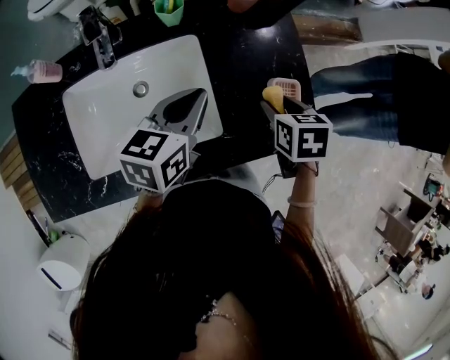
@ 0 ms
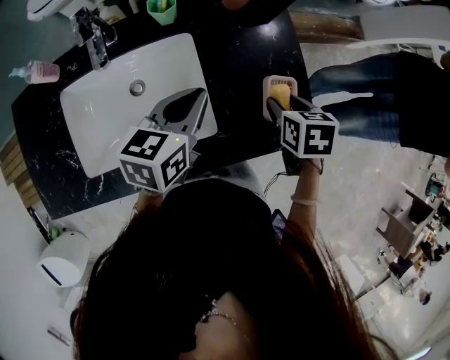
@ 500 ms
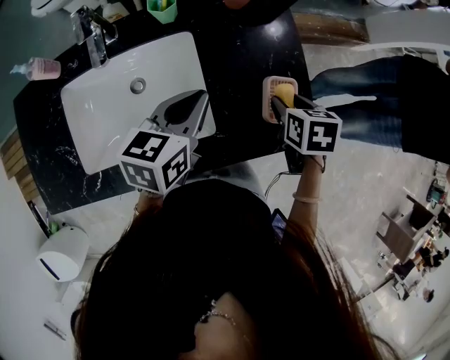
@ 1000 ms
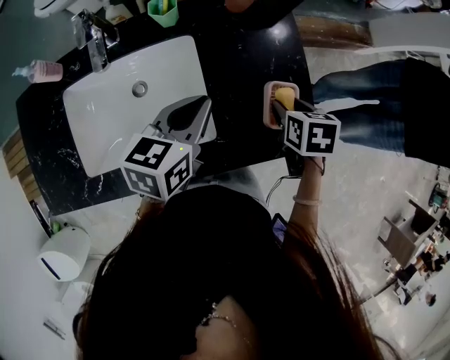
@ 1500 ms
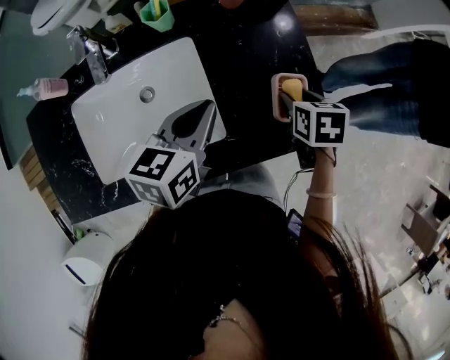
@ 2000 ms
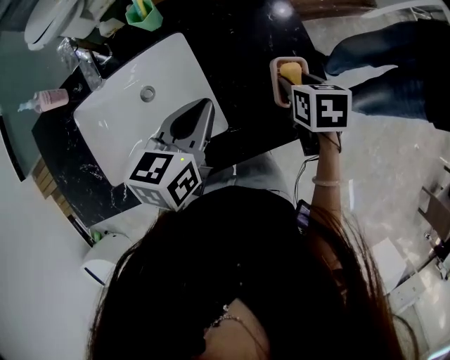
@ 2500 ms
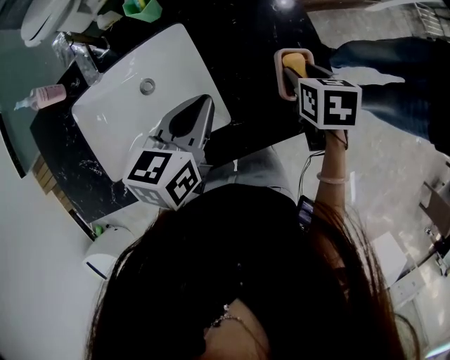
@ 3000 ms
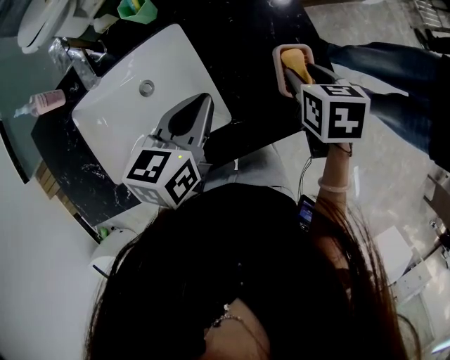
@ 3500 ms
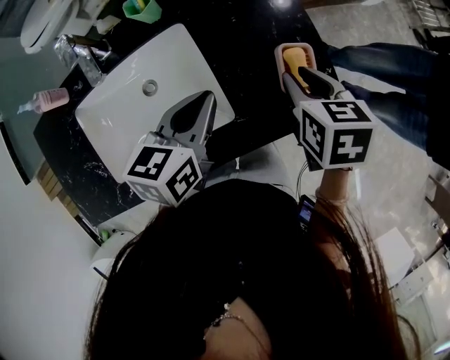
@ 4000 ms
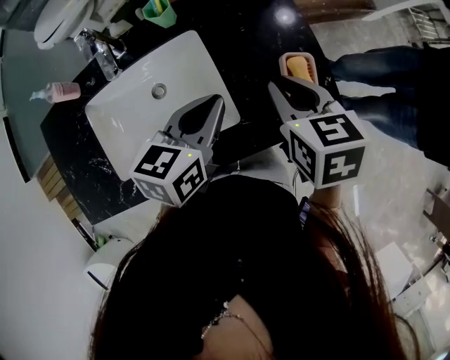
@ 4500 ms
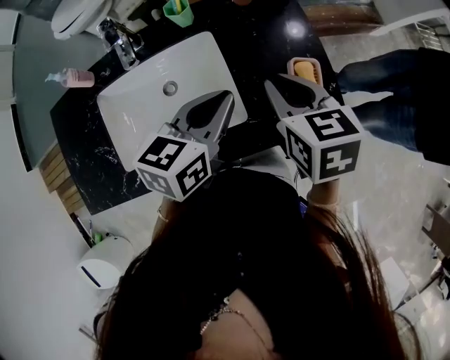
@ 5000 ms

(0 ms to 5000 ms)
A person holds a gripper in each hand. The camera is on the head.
0 ms - 2500 ms: The right gripper shifts about 5 cm to the right.
2500 ms - 5000 ms: The right gripper travels upward and to the left by some 20 cm, rotates approximately 30 degrees, and closes up, while the left gripper goes some 5 cm upward.

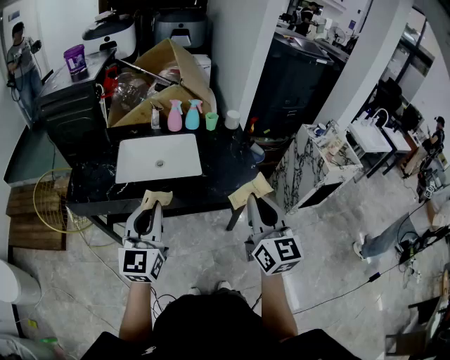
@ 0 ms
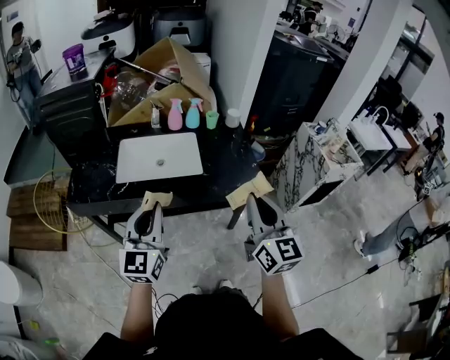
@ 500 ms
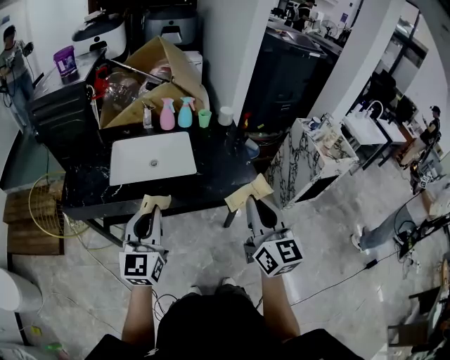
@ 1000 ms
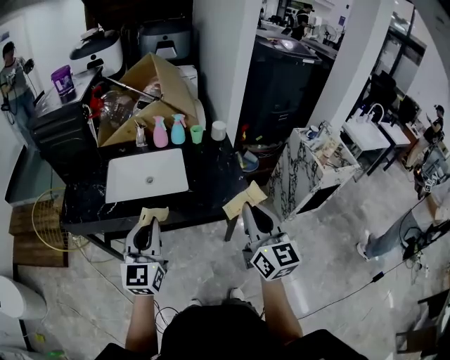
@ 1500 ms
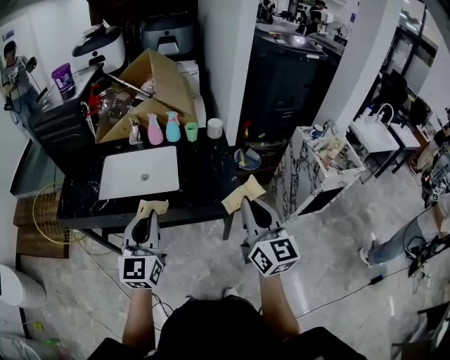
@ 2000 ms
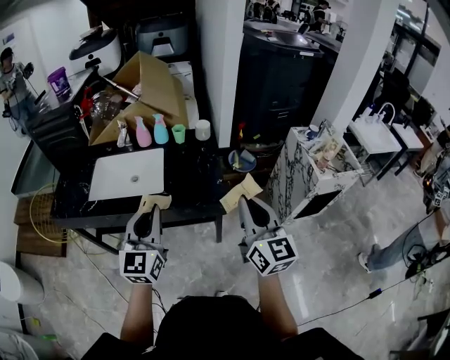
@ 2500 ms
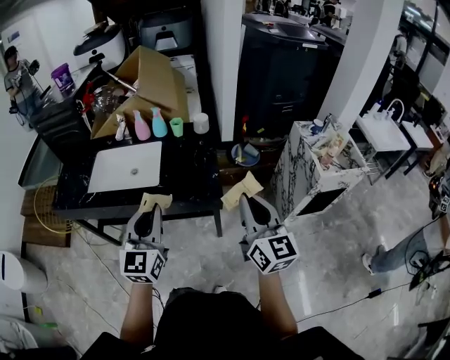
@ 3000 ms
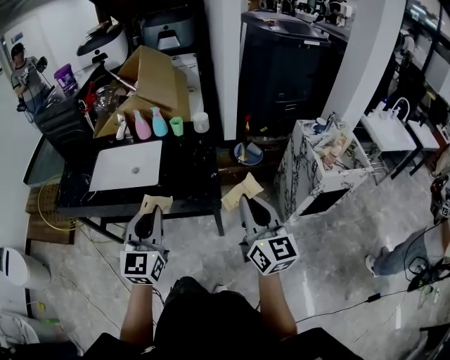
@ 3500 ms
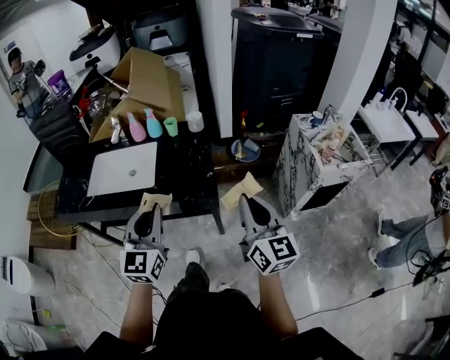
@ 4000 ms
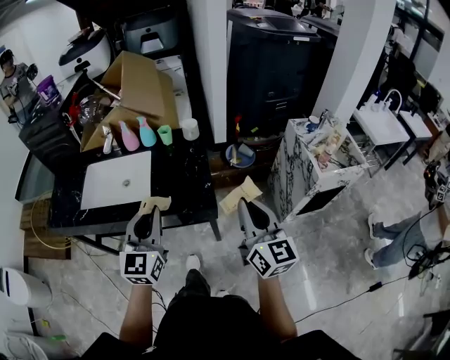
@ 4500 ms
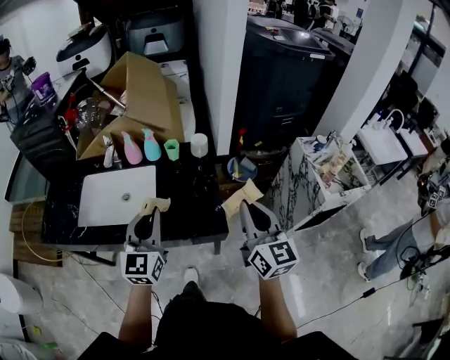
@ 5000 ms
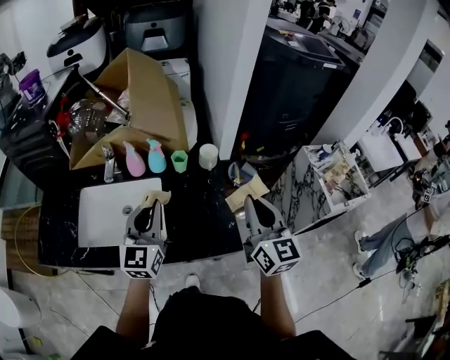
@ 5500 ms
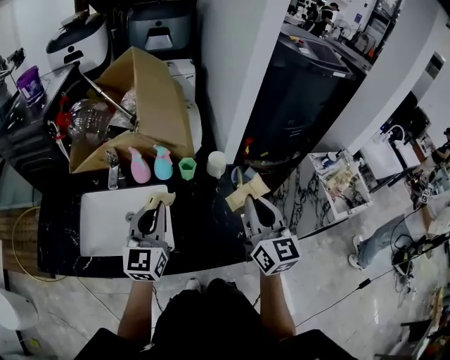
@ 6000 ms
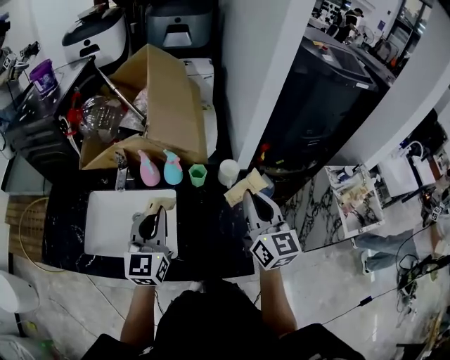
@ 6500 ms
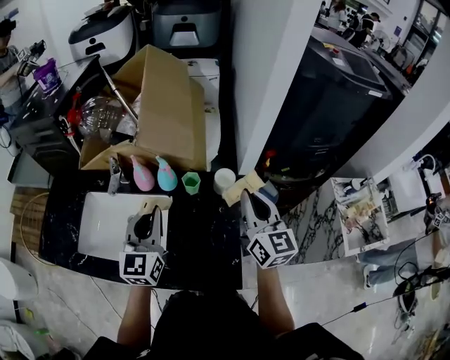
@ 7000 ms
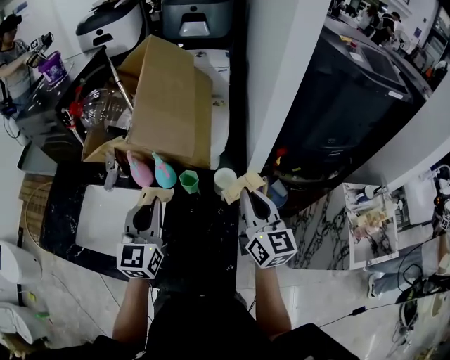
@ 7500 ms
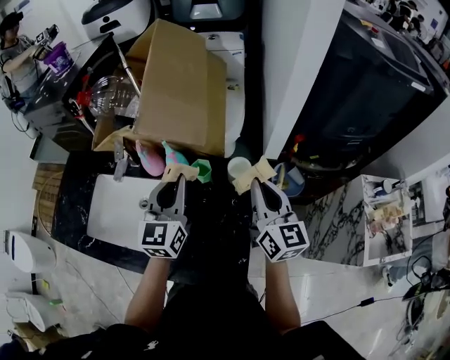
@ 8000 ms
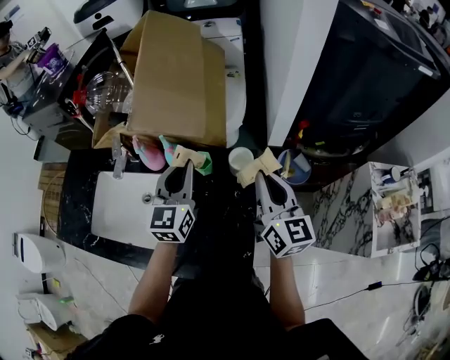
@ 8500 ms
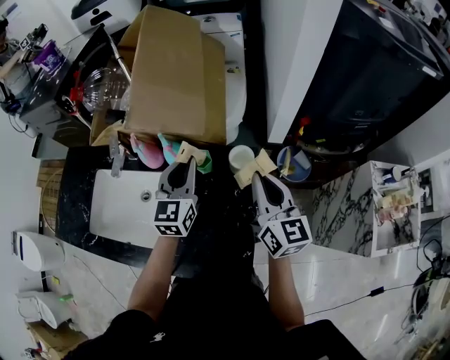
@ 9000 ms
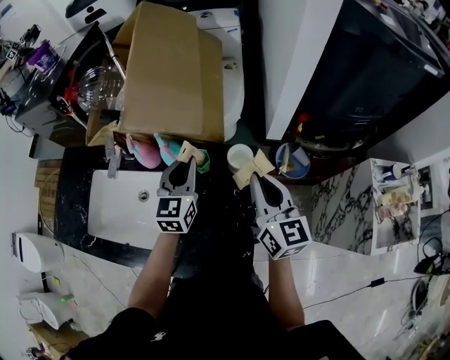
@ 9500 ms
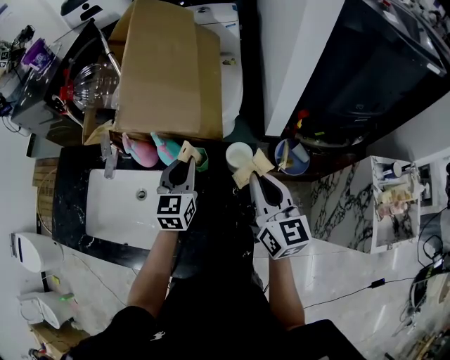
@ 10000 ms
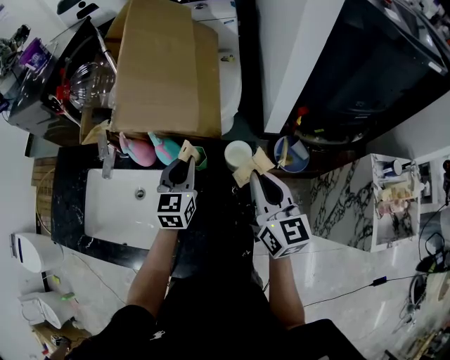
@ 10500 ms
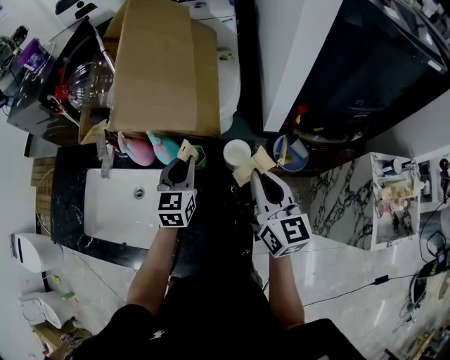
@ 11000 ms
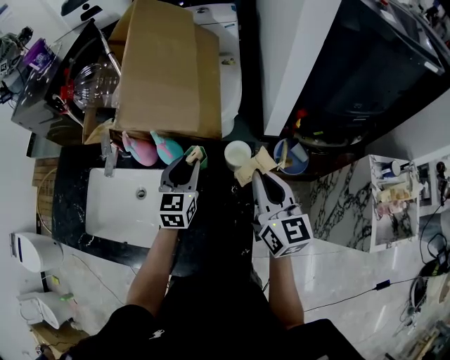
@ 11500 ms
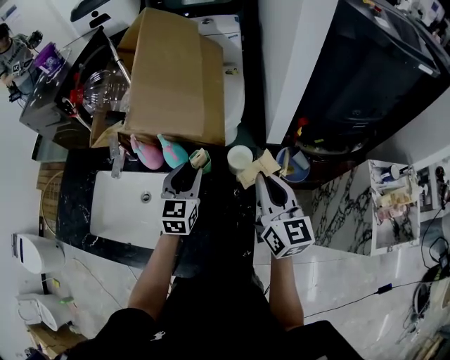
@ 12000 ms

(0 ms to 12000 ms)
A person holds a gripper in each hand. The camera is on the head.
0 ms - 2000 ms: The left gripper is displaced to the right by some 15 cm. Meanwhile the right gripper is displaced to the right and forward by some 15 cm.
2000 ms - 4000 ms: Both grippers move to the right, roughly 15 cm.
4000 ms - 6000 ms: The two grippers go about 35 cm forward and to the left.
6000 ms - 8000 ms: The left gripper shifts about 15 cm forward and to the right. The right gripper heads forward and downward, covering about 20 cm.
8000 ms - 10000 ms: The left gripper goes some 15 cm downward and forward.
10000 ms - 12000 ms: The left gripper opens its fingers.

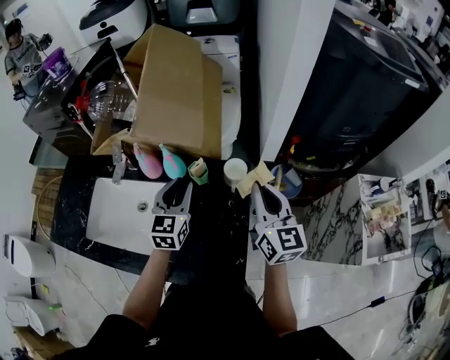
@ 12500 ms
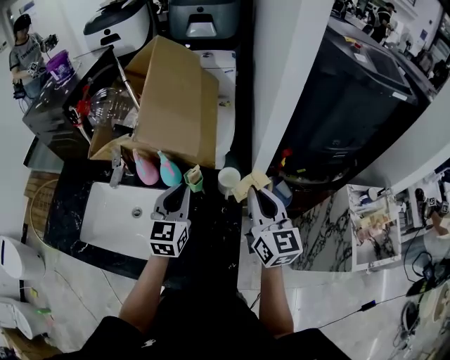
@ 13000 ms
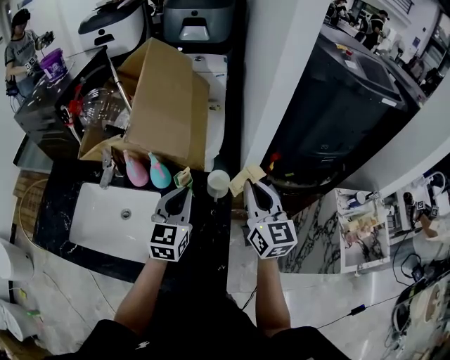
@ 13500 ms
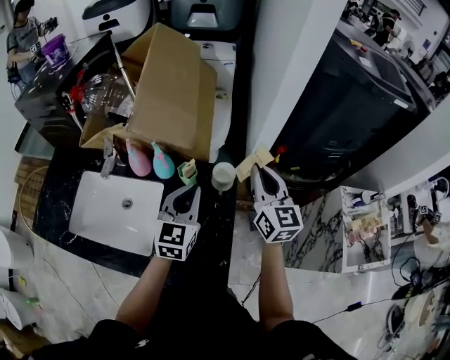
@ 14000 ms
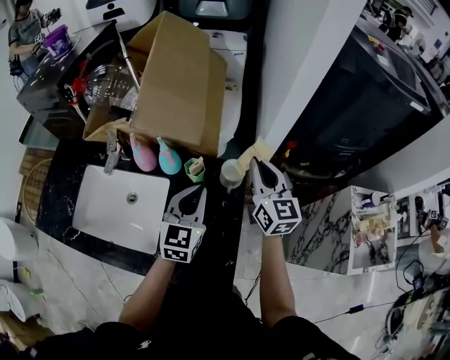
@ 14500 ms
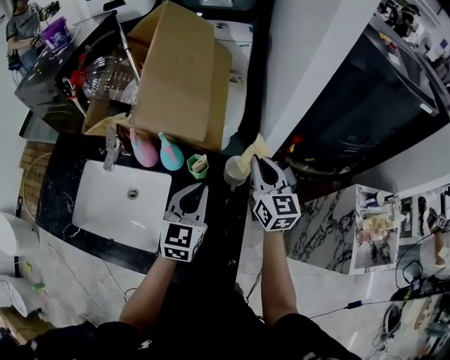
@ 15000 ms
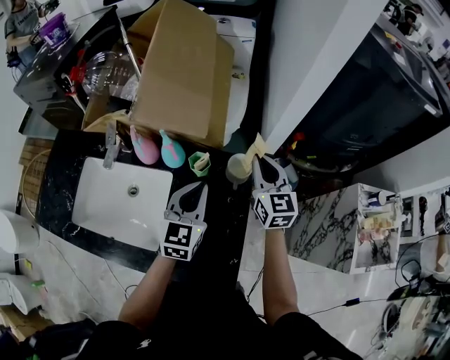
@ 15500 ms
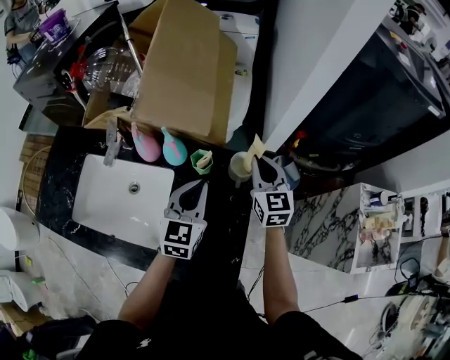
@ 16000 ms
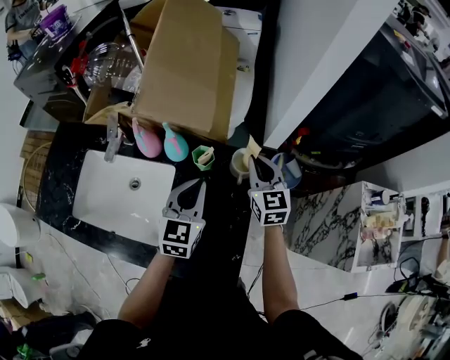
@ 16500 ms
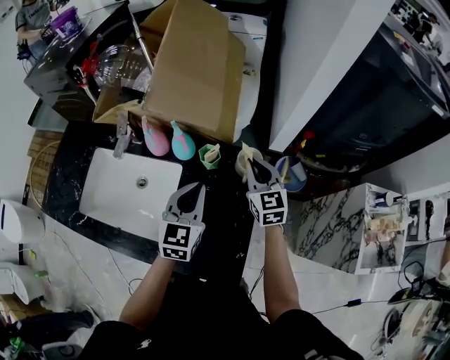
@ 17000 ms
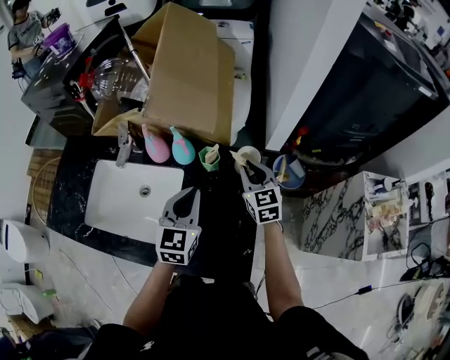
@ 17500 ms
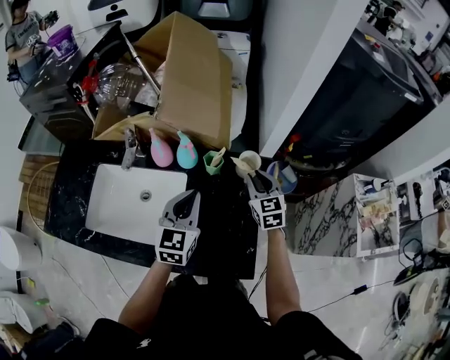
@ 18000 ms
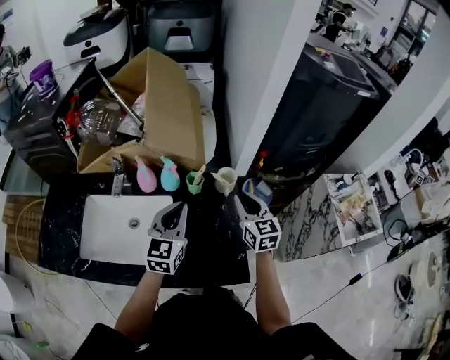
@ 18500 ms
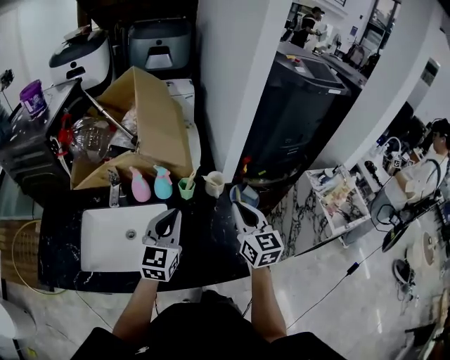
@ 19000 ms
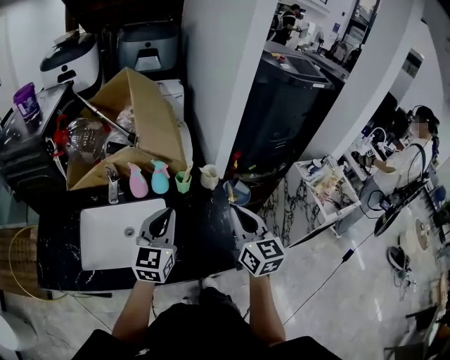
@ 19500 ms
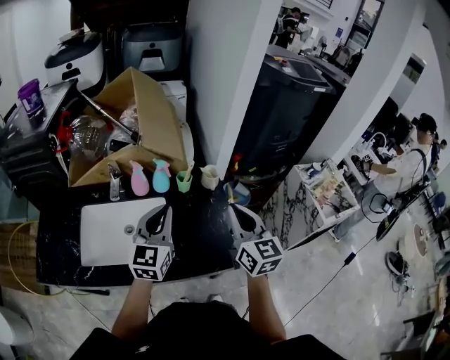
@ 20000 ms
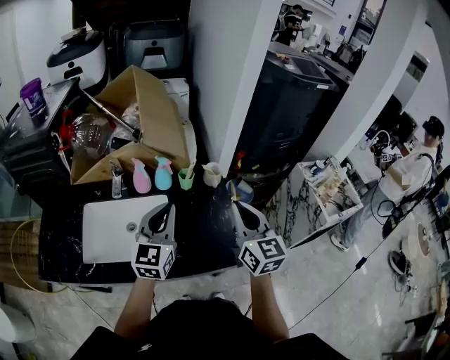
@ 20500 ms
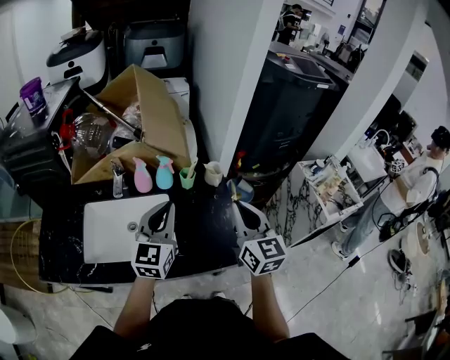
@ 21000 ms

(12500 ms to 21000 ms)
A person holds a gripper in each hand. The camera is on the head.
12500 ms - 14500 ms: The left gripper is displaced to the right by approximately 5 cm, and closes; the right gripper moves forward, about 10 cm.
14500 ms - 16500 ms: The right gripper shifts roughly 10 cm downward. The left gripper shifts by about 5 cm.
16500 ms - 19000 ms: The left gripper heads upward, backward and to the left, covering approximately 20 cm, and changes its angle by approximately 20 degrees. Meanwhile the right gripper travels backward and upward by some 25 cm, and turns by roughly 20 degrees.
19000 ms - 21000 ms: The right gripper travels backward and upward by about 10 cm, while the left gripper is displaced backward by roughly 5 cm.

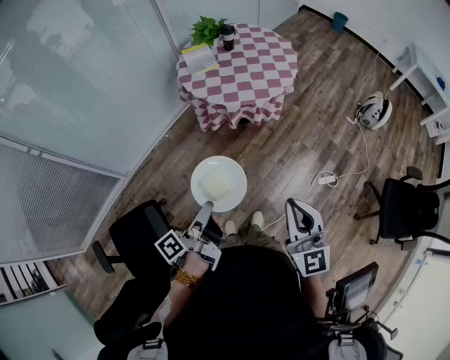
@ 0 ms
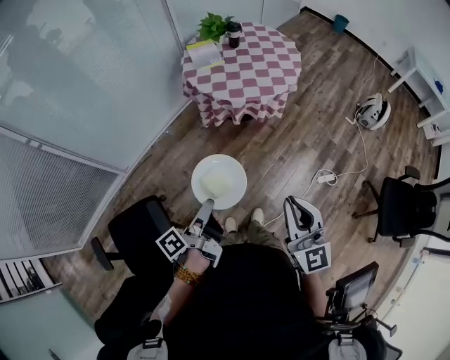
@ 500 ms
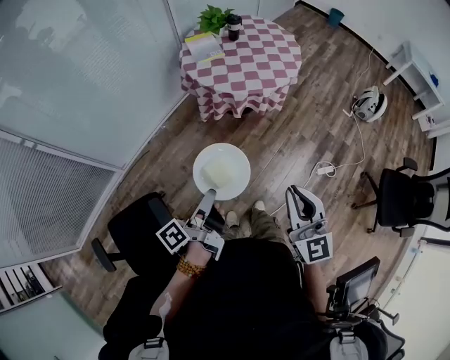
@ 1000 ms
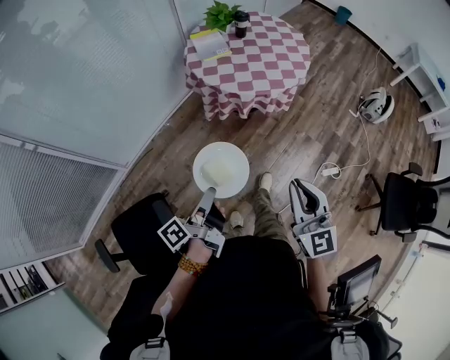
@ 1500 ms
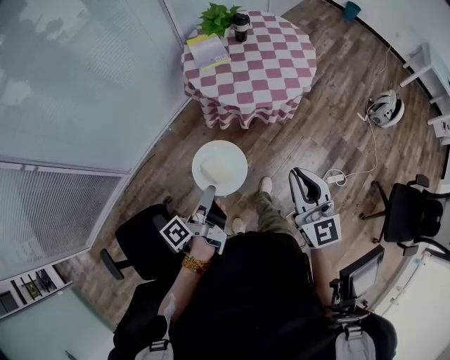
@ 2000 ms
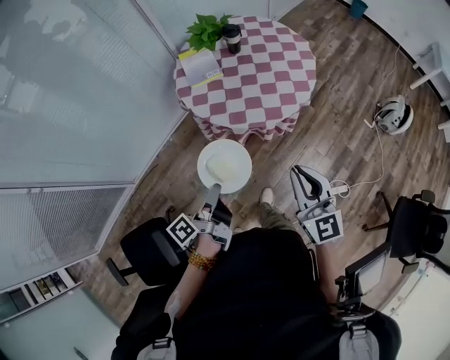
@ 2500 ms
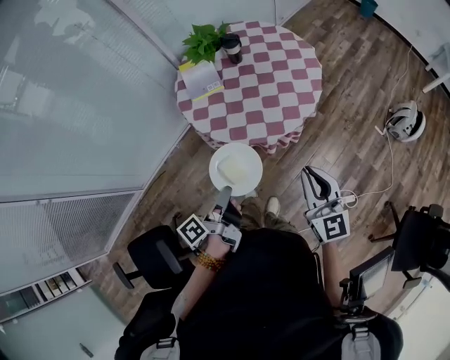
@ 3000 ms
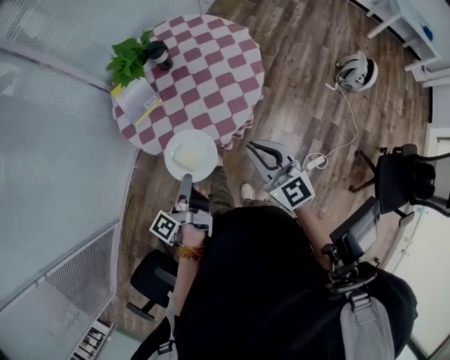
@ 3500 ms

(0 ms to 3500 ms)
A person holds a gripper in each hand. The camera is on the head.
0 ms - 2000 ms: The right gripper ends up approximately 20 cm from where it was.
2000 ms - 3500 ms: The right gripper shifts by some 35 cm.
